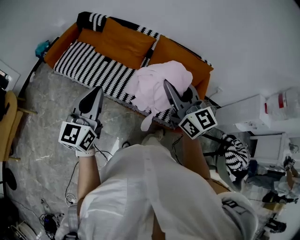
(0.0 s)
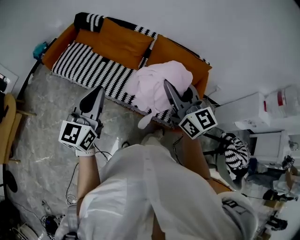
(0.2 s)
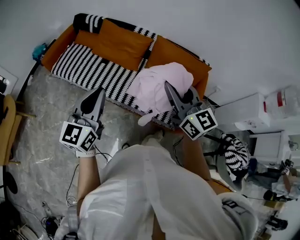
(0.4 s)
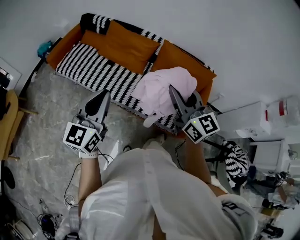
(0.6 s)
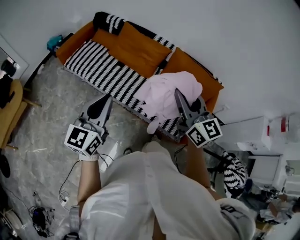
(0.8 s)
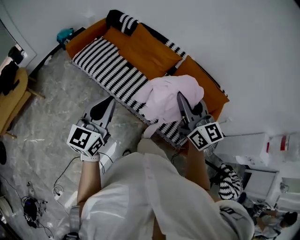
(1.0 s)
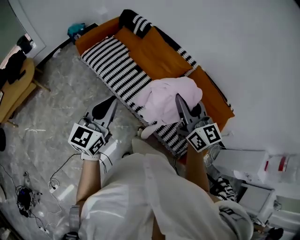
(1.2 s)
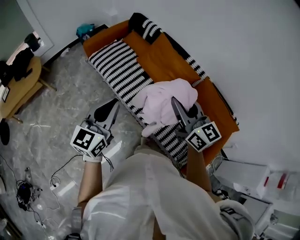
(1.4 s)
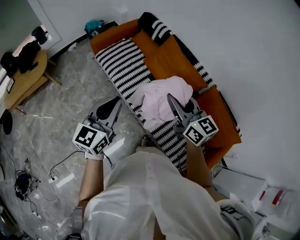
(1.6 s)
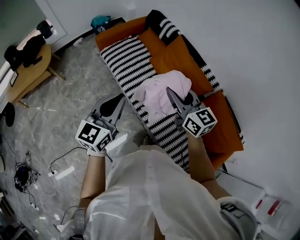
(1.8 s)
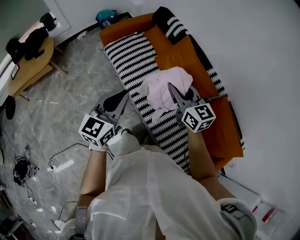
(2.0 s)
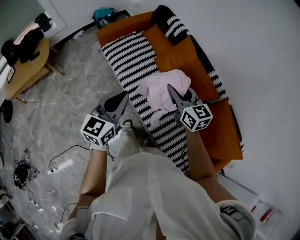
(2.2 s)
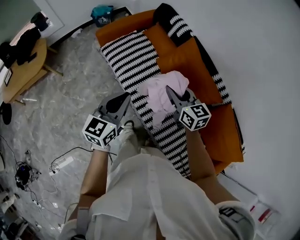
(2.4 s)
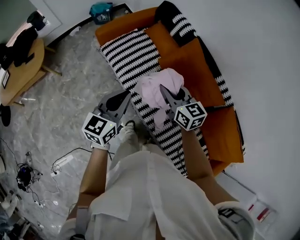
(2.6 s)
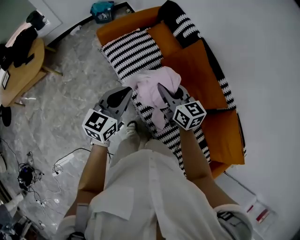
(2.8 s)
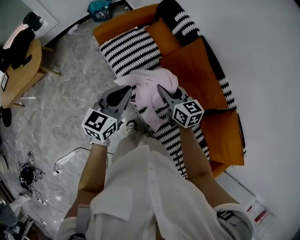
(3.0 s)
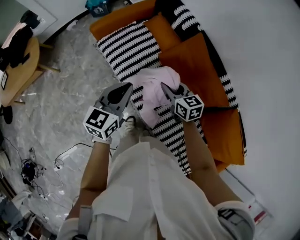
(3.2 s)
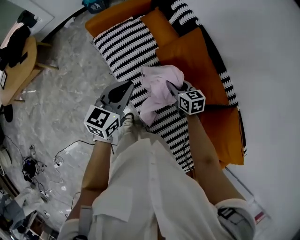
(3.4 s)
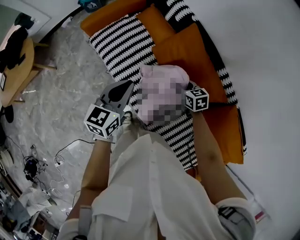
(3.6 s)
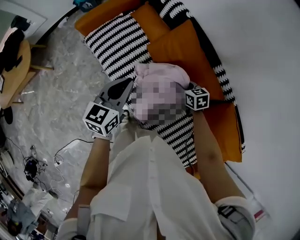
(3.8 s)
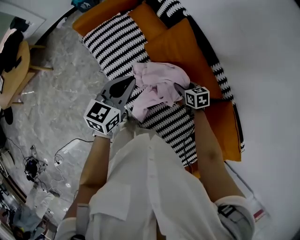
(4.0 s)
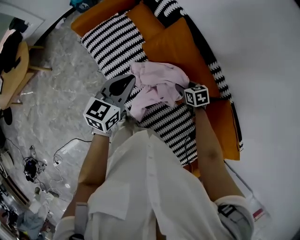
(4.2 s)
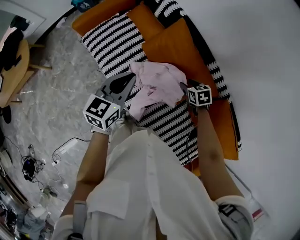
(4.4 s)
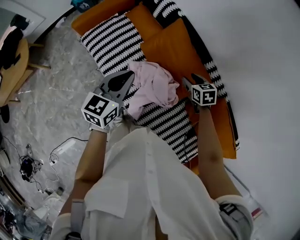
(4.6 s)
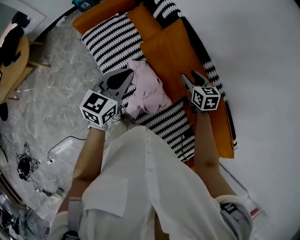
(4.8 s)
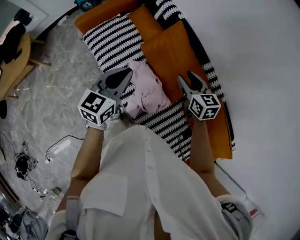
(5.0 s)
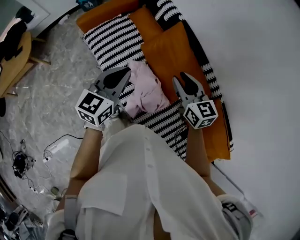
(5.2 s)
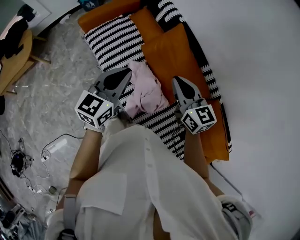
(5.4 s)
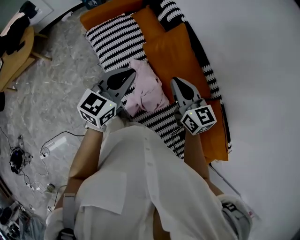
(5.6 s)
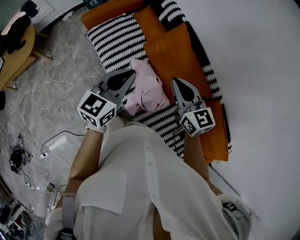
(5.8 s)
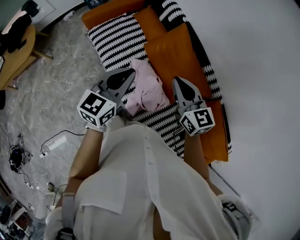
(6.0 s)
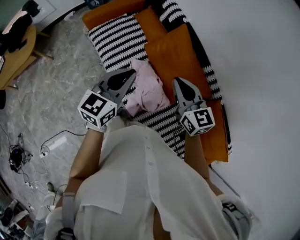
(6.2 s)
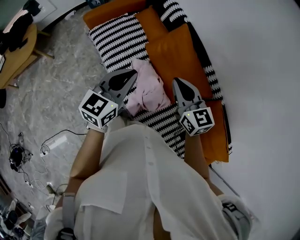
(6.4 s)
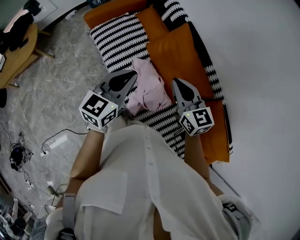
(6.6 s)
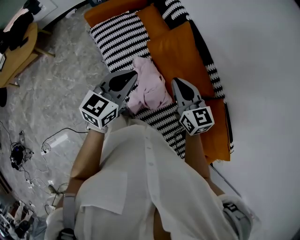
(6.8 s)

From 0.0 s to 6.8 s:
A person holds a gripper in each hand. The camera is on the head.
From 0.0 s to 1.4 s: The right gripper travels forward and to the left by some 20 cm, and swivels about 20 degrees; the left gripper travels forward and to the left by approximately 15 cm.
From 1.4 s to 2.8 s: The left gripper is displaced forward and downward by approximately 30 cm. The right gripper moves forward, downward and to the left, approximately 40 cm, and rotates approximately 20 degrees.
From 2.8 s to 4.0 s: The left gripper travels to the right by about 15 cm; the right gripper is displaced to the right and downward by some 35 cm, and tips its fingers downward by roughly 30 degrees.
From 4.0 s to 5.4 s: The right gripper moves upward, roughly 30 cm, points its fingers approximately 40 degrees further upward, and closes up, while the left gripper travels upward by some 10 cm.
From 5.4 s to 6.8 s: The grippers make only small movements.

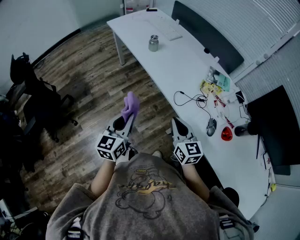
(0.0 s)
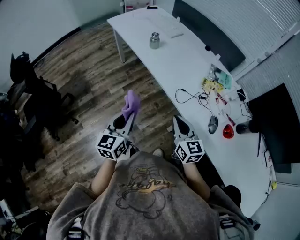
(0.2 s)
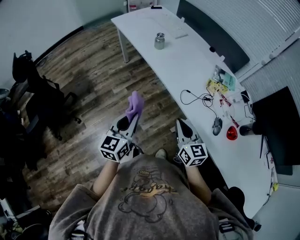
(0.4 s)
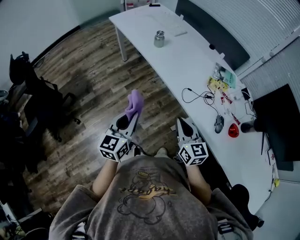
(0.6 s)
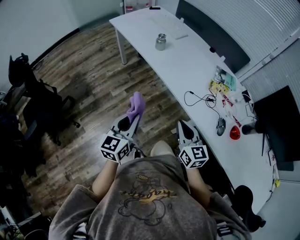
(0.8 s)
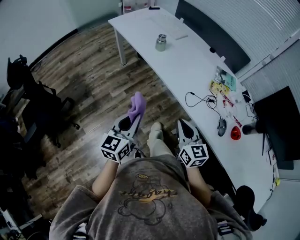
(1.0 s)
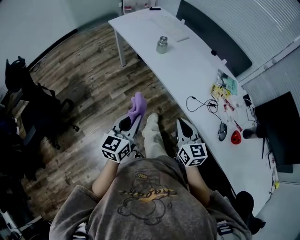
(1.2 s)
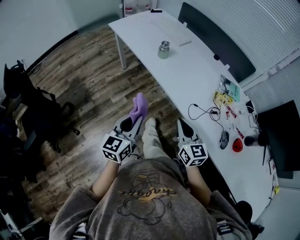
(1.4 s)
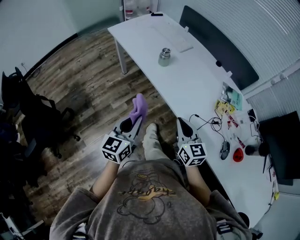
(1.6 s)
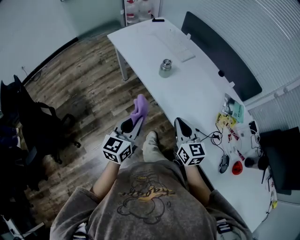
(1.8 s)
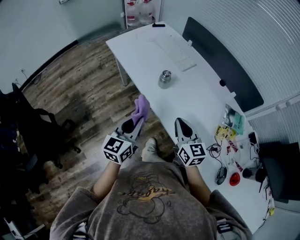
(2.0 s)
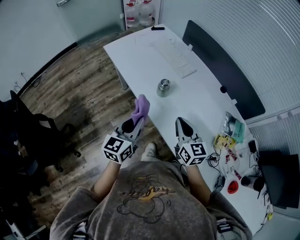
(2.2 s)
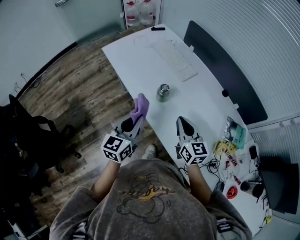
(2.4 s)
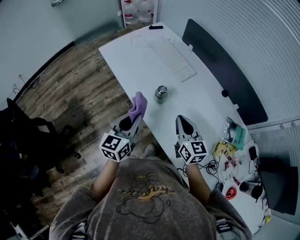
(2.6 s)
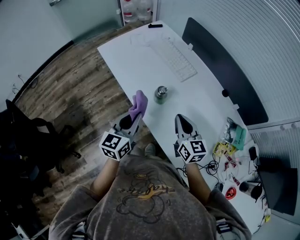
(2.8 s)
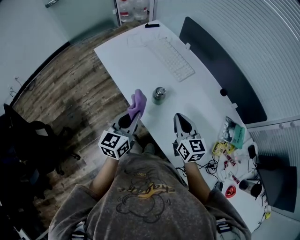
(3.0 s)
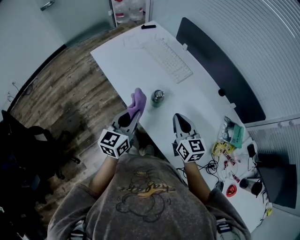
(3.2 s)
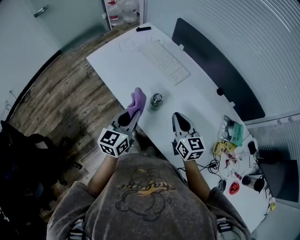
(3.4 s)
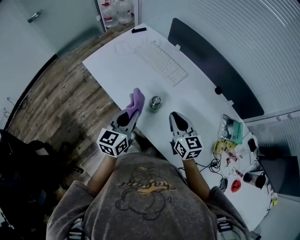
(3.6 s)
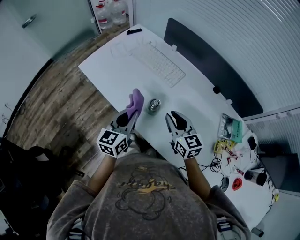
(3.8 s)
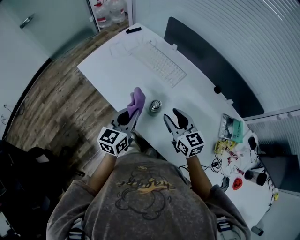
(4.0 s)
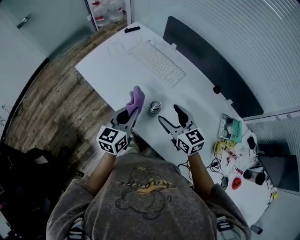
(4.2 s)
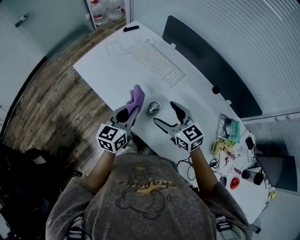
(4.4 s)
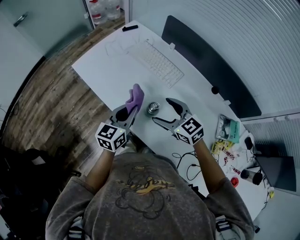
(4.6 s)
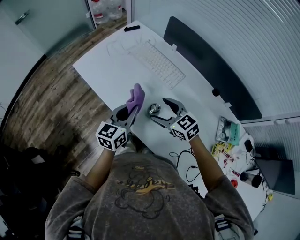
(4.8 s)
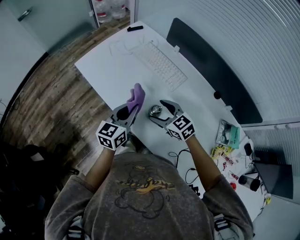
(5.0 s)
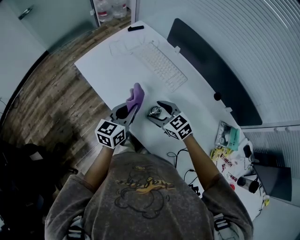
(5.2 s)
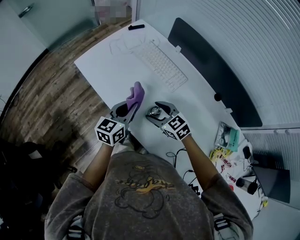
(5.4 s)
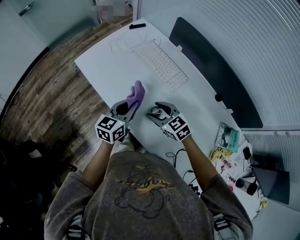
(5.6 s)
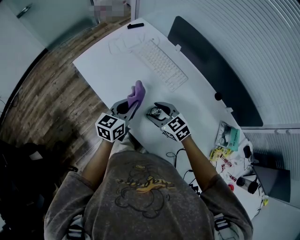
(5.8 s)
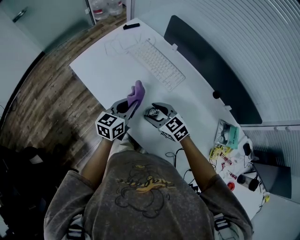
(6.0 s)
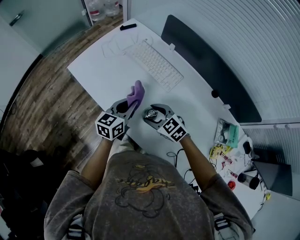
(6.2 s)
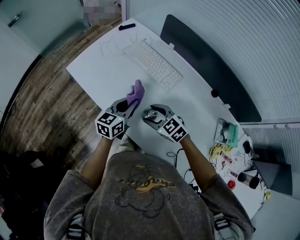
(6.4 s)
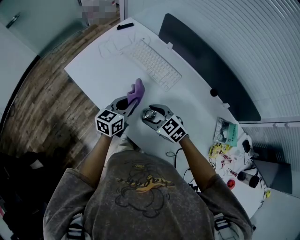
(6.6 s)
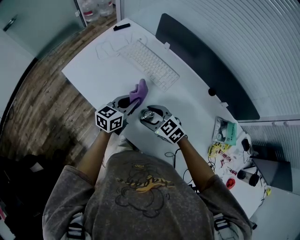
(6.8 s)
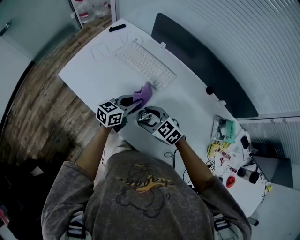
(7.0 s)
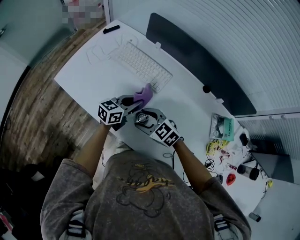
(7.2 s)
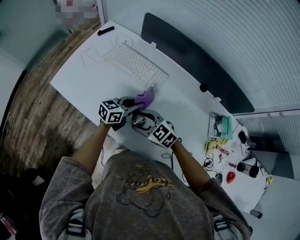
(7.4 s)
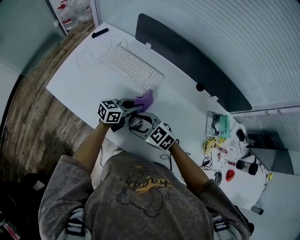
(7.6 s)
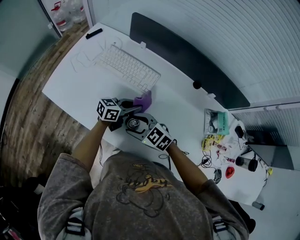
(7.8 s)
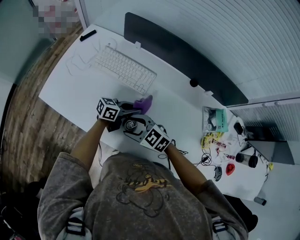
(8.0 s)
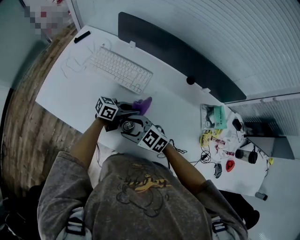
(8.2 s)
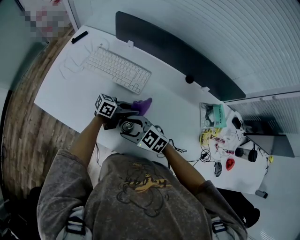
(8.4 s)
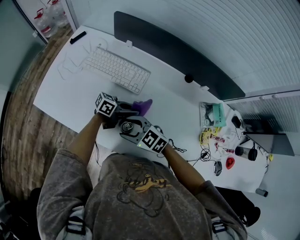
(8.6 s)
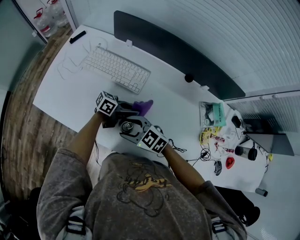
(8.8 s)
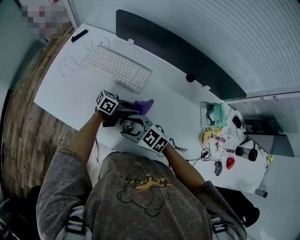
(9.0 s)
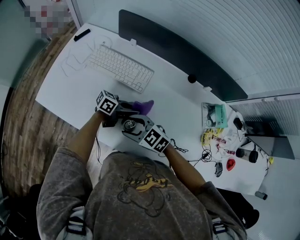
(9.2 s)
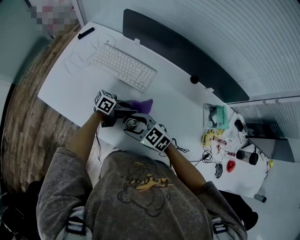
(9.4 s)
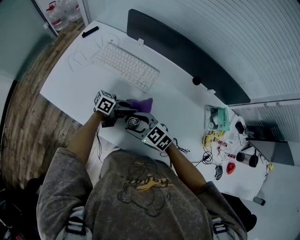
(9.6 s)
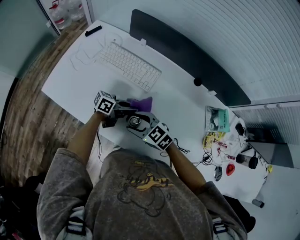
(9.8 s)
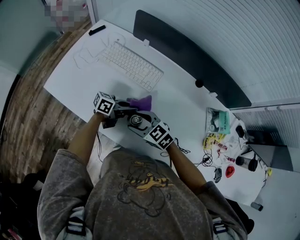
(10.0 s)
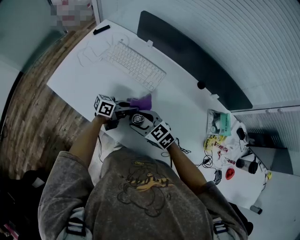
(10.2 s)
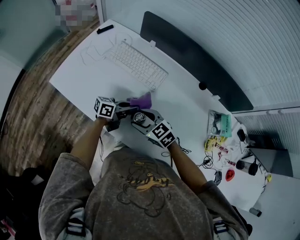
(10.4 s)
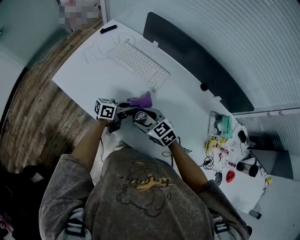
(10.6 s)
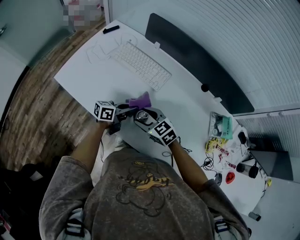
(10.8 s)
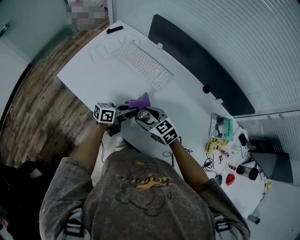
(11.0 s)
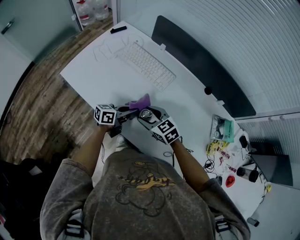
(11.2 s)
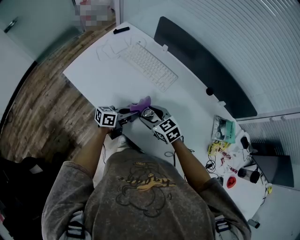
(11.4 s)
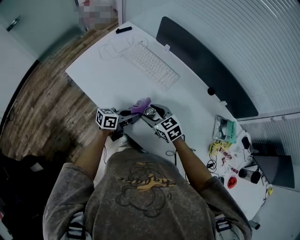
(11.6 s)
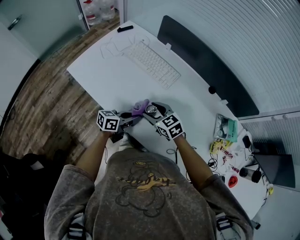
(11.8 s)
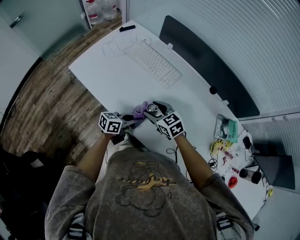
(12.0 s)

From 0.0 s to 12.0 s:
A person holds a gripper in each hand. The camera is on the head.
From 0.0 s to 1.6 s: Both grippers travel together forward and to the left, about 20 cm.
From 1.6 s to 3.0 s: Both grippers move forward, approximately 30 cm.
From 3.0 s to 4.4 s: The right gripper is displaced forward and to the left by roughly 10 cm, and opens up. Meanwhile the left gripper travels forward by roughly 10 cm.
From 4.4 s to 6.0 s: The right gripper moves downward, about 10 cm. Meanwhile the left gripper travels forward by some 5 cm.
From 6.0 s to 7.6 s: The left gripper changes place by about 15 cm, and swivels about 40 degrees.
From 7.6 s to 9.0 s: The left gripper ends up about 5 cm from where it was, and rotates some 30 degrees.
From 9.0 s to 10.4 s: The left gripper ends up about 5 cm from where it was, and rotates roughly 30 degrees.
From 10.4 s to 12.0 s: The left gripper shifts by about 10 cm.

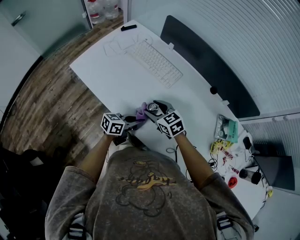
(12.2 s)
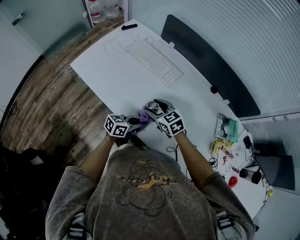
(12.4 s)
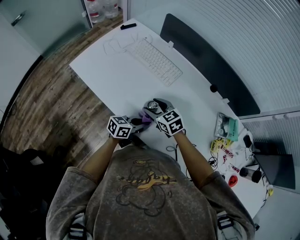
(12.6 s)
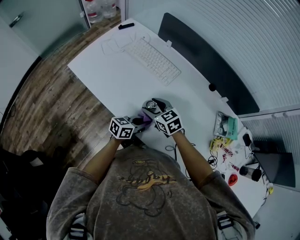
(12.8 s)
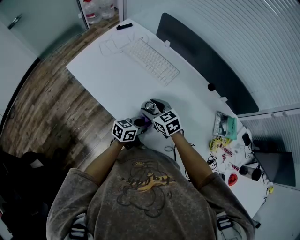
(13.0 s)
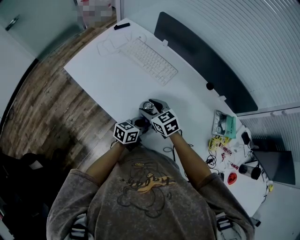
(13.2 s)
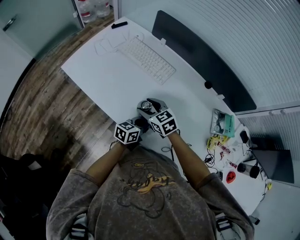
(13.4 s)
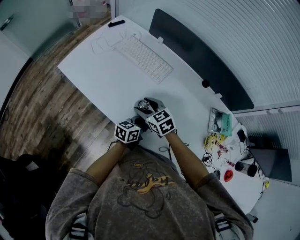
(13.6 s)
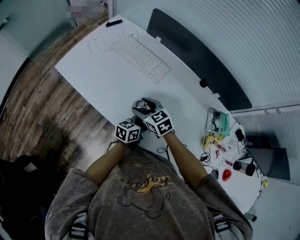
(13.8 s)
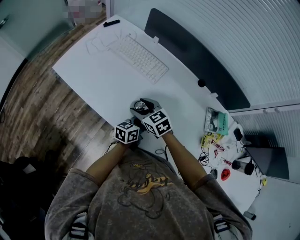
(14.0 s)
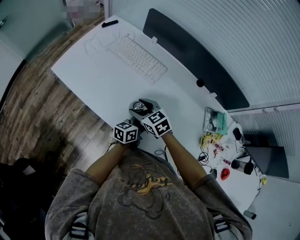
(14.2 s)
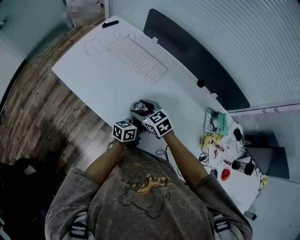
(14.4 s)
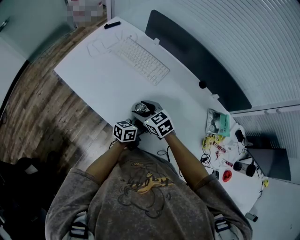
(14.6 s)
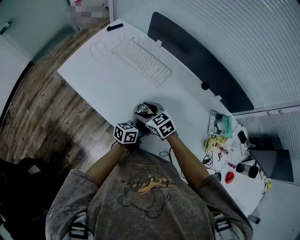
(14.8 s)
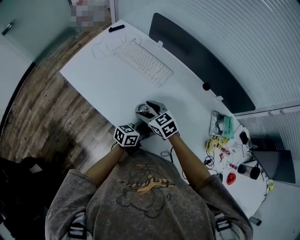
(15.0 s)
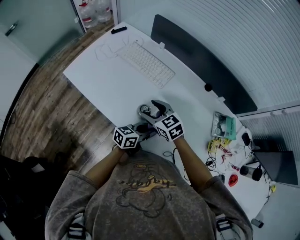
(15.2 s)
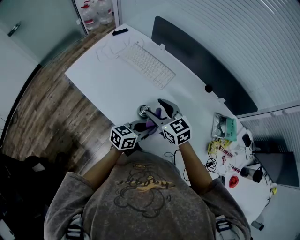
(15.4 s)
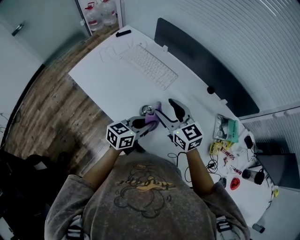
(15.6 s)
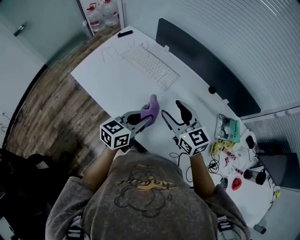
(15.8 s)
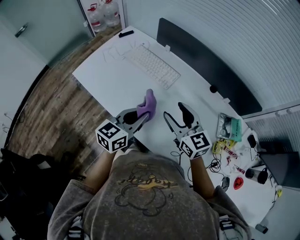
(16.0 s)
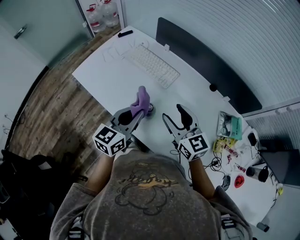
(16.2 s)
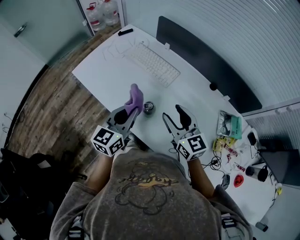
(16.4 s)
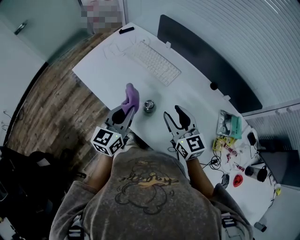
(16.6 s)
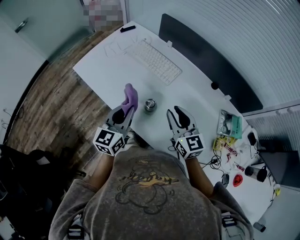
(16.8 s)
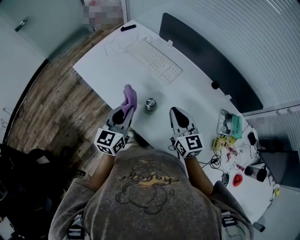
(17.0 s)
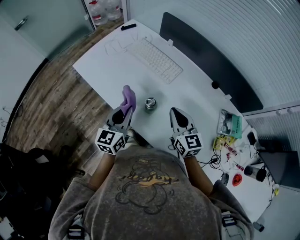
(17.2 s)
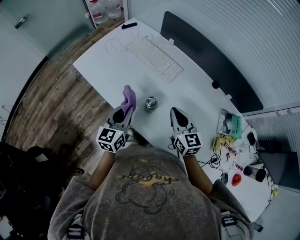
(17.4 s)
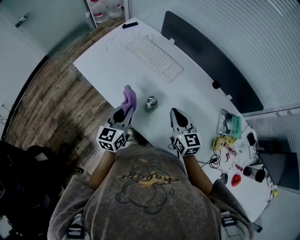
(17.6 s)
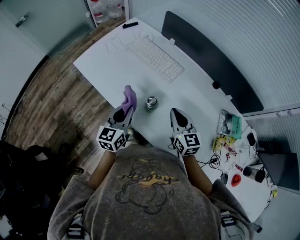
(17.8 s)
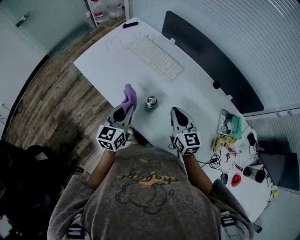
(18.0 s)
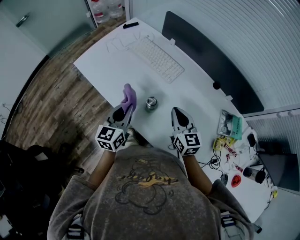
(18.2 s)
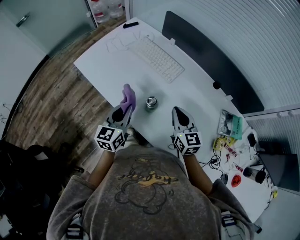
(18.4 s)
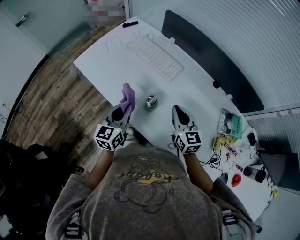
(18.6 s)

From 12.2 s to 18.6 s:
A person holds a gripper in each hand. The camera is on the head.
From 12.2 s to 13.8 s: The left gripper goes some 10 cm to the right.
From 13.8 s to 15.4 s: Both grippers move upward, some 10 cm.
From 15.4 s to 17.0 s: The right gripper moves to the right, approximately 5 cm, changes its angle by about 20 degrees, and closes its fingers; the left gripper travels to the left and upward by some 15 cm, and swivels approximately 40 degrees.
From 17.0 s to 18.6 s: The grippers move only a little.
